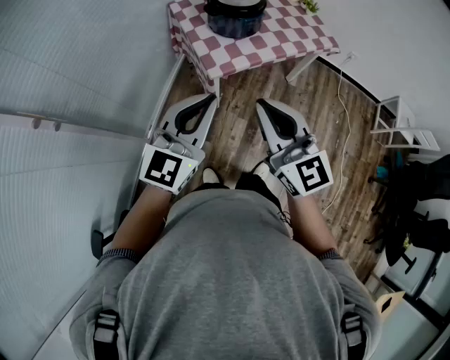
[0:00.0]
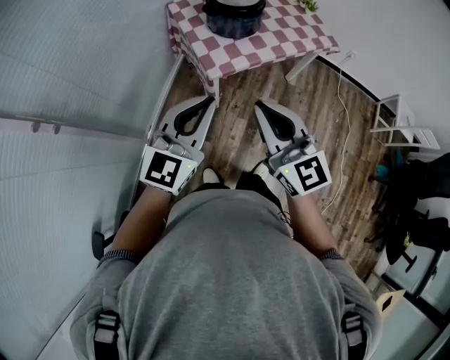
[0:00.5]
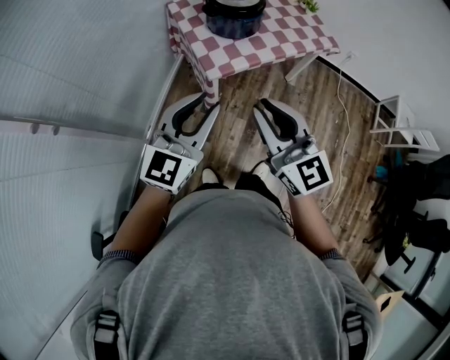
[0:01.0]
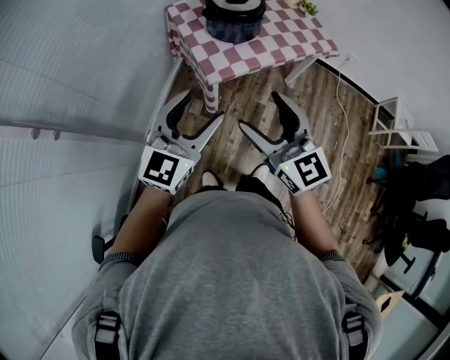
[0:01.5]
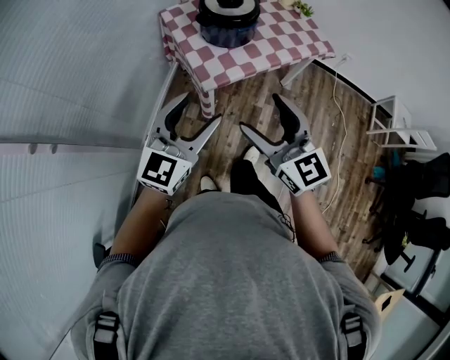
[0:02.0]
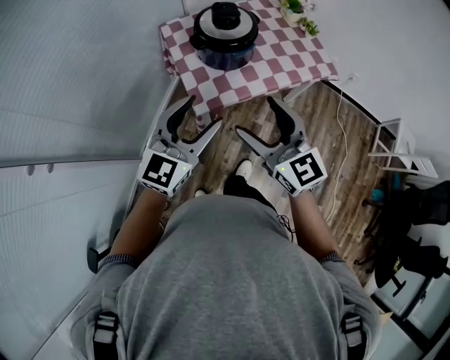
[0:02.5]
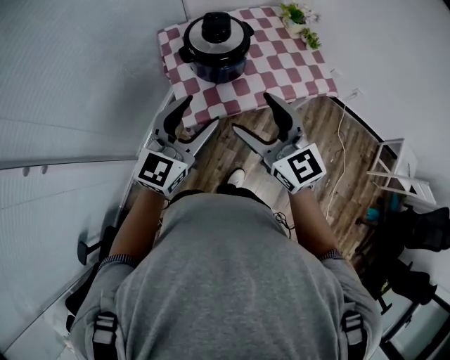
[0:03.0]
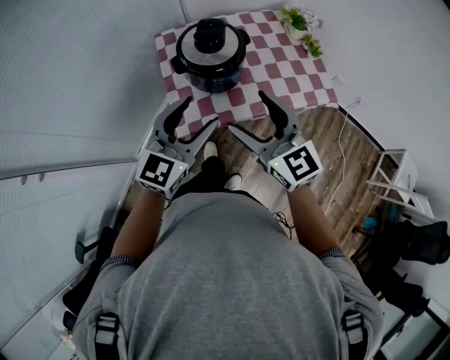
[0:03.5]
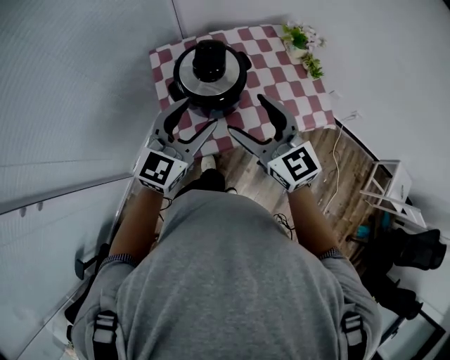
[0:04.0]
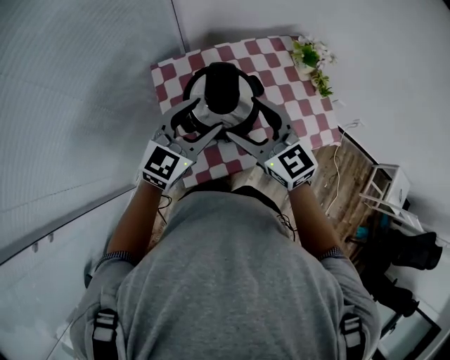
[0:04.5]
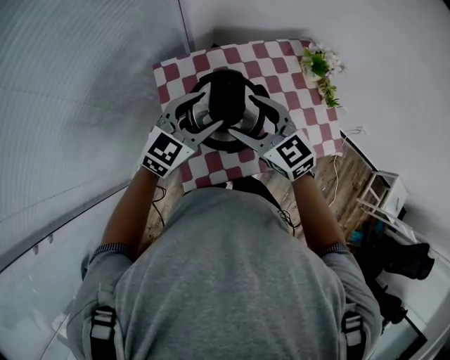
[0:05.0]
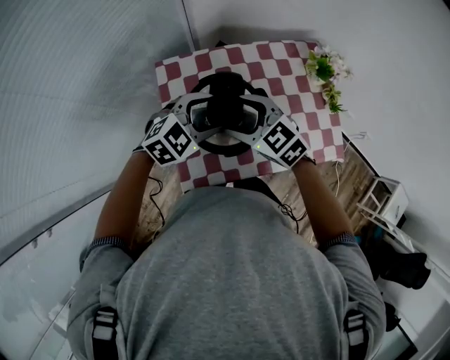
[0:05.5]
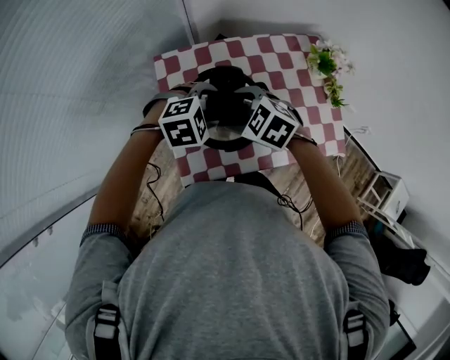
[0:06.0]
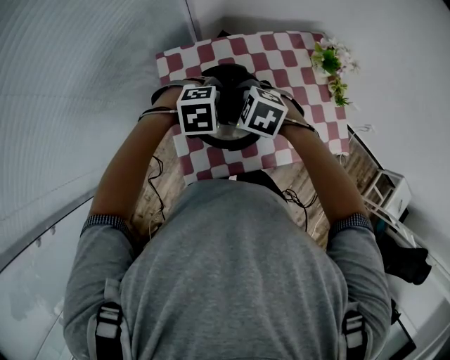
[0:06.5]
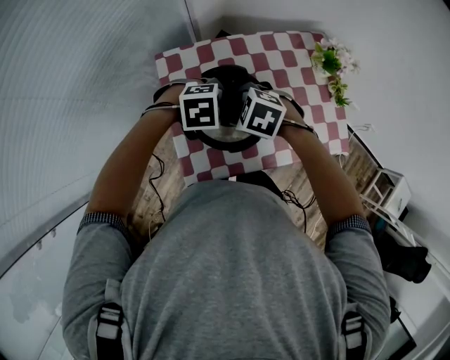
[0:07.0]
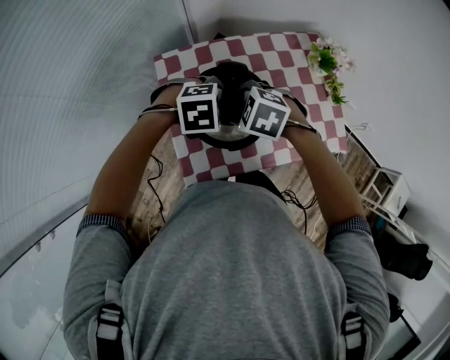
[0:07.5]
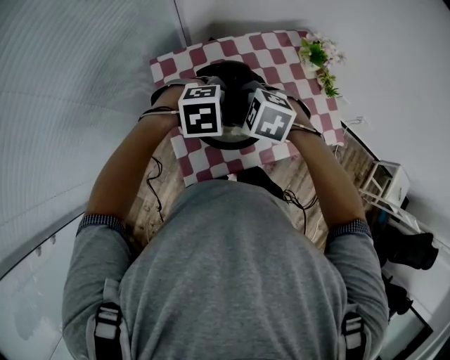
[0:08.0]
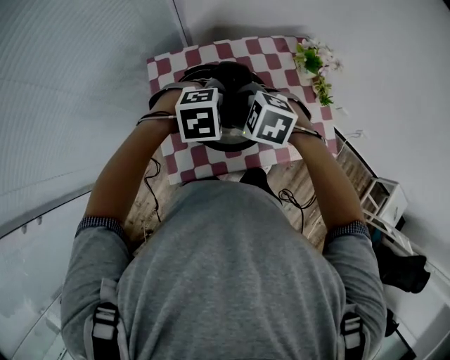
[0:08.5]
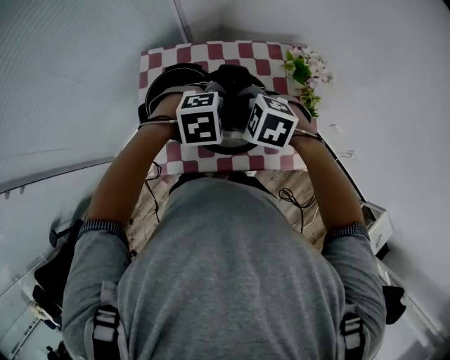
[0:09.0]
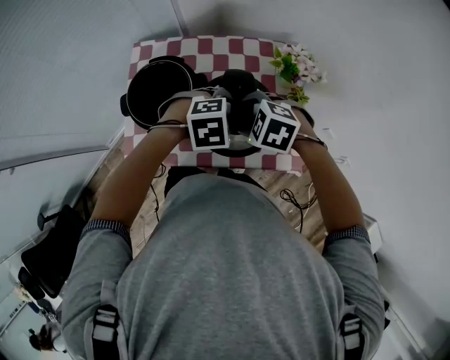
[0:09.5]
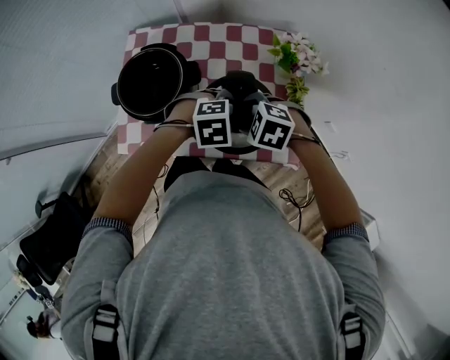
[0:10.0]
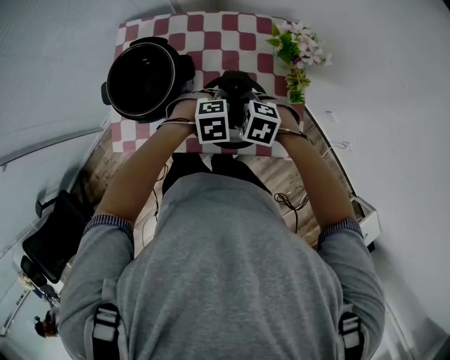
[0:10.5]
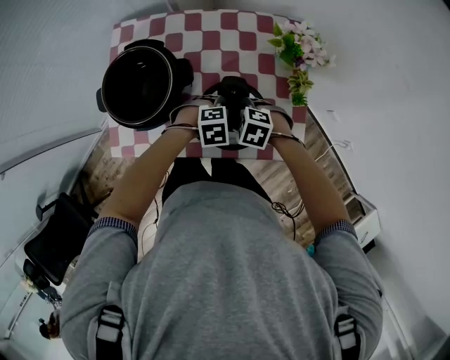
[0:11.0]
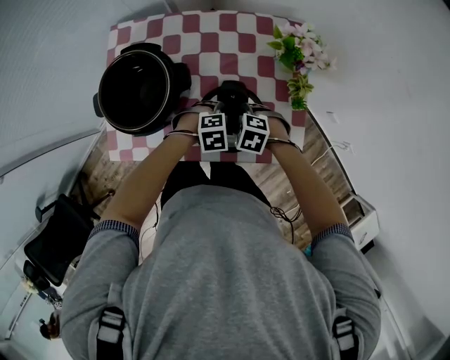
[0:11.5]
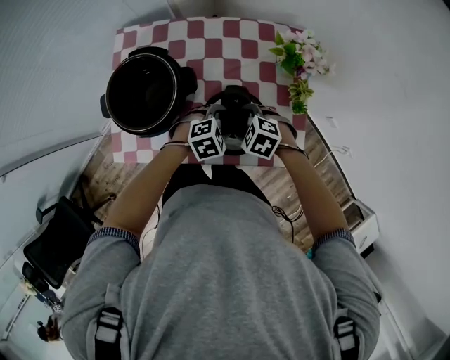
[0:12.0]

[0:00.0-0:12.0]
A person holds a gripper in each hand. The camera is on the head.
0.0 to 2.0 s: The grippers both shift forward by about 5 cm. The right gripper opens up, while the left gripper opens up.
2.0 to 4.0 s: The grippers both shift forward and to the right by approximately 35 cm.
4.0 to 6.0 s: The right gripper changes place by some 25 cm, and tilts its fingers approximately 40 degrees downward; the left gripper ends up approximately 25 cm from where it was, and angles its fingers downward, by some 50 degrees.
6.0 to 8.0 s: The grippers make only small movements.
8.0 to 10.0 s: The right gripper ends up approximately 30 cm from where it was, and changes its angle by some 20 degrees. Meanwhile the left gripper ends up about 30 cm from where it was, and turns by approximately 20 degrees.
10.0 to 12.0 s: Both grippers travel together downward, roughly 15 cm.

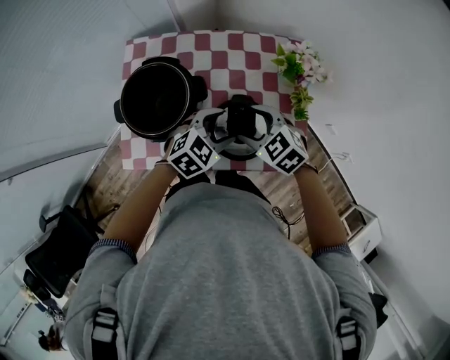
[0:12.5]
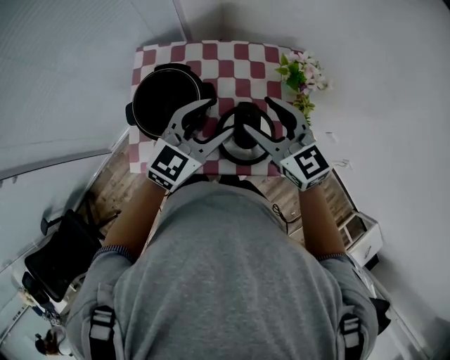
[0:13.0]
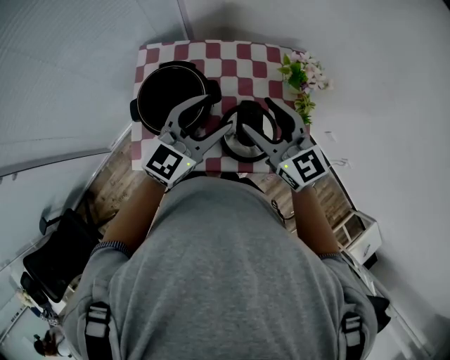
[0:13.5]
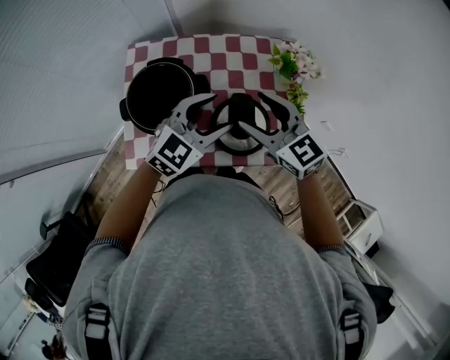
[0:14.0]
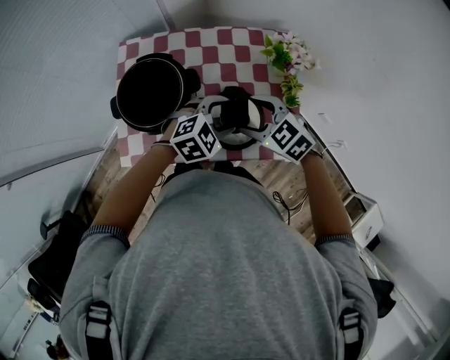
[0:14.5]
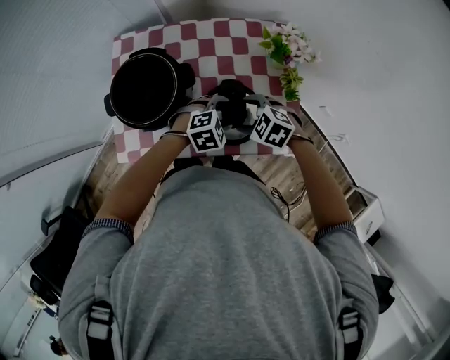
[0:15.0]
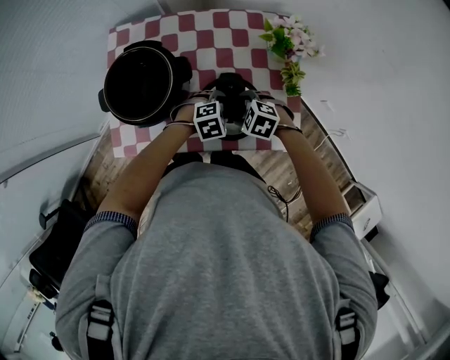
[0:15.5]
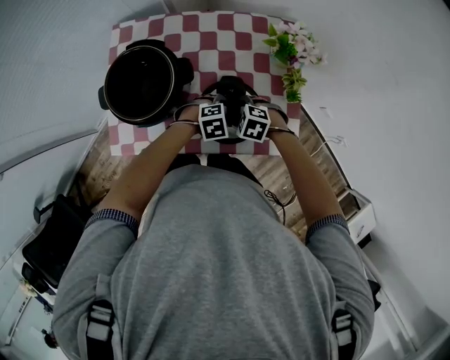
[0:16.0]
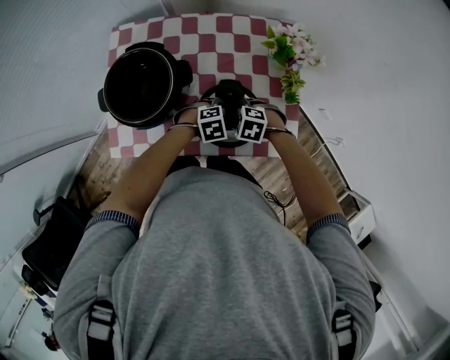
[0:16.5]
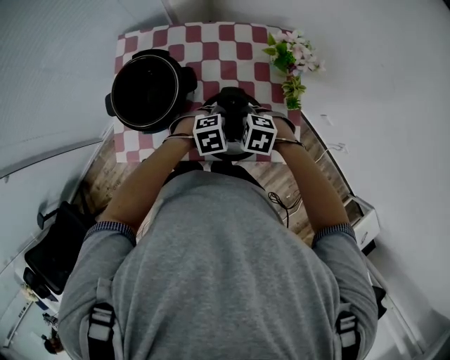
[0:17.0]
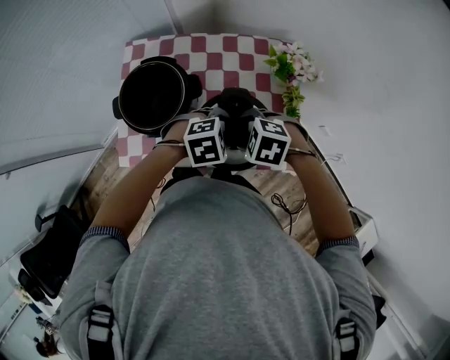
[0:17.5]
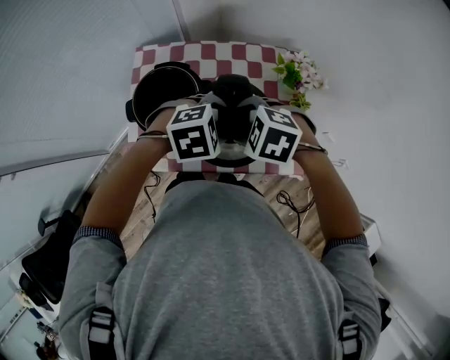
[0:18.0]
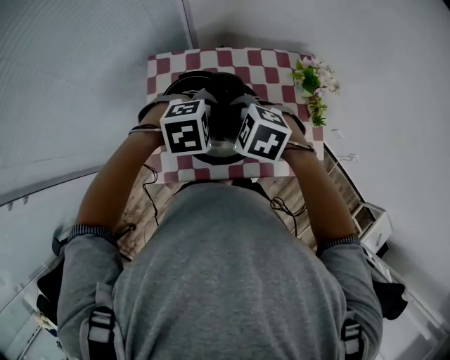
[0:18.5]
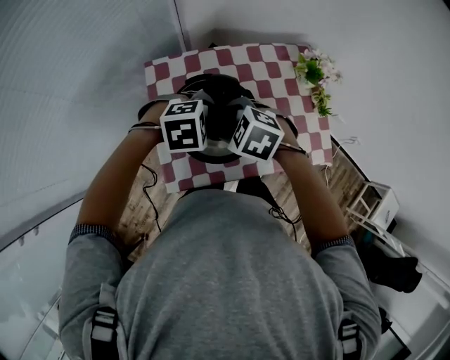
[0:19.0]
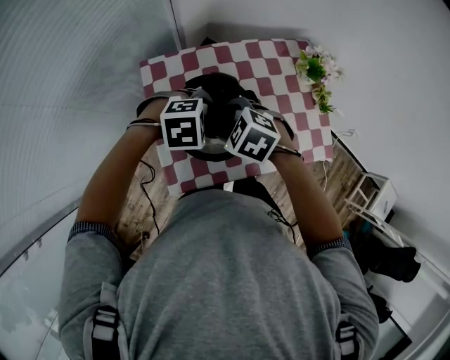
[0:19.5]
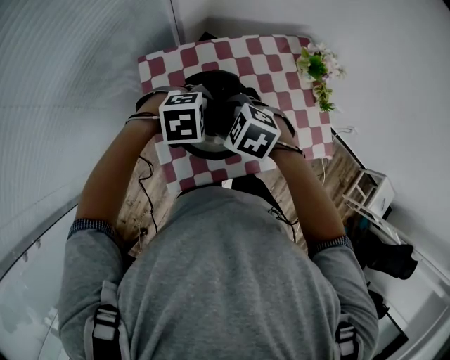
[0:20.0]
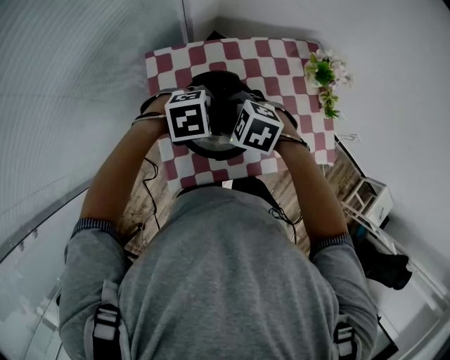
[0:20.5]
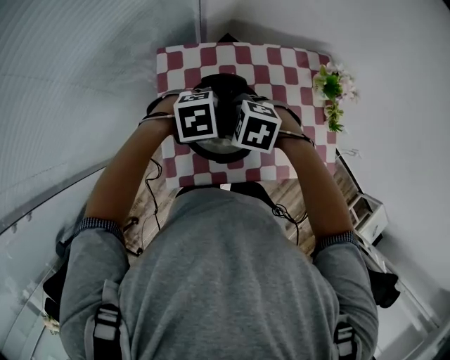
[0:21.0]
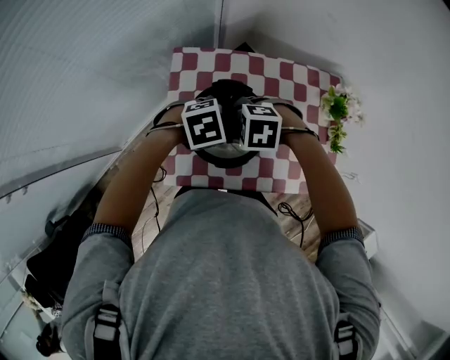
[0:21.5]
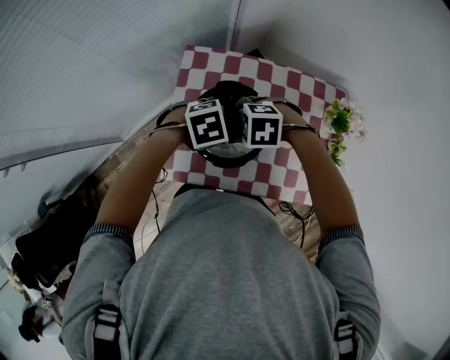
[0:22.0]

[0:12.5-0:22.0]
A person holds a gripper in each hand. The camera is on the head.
12.5 to 14.5 s: The right gripper reaches about 15 cm upward, then returns. Meanwhile the left gripper goes upward and returns, some 15 cm each way.
14.5 to 16.5 s: Both grippers move downward, approximately 20 cm. The left gripper turns by some 20 degrees; the right gripper turns by about 30 degrees.
16.5 to 18.0 s: The grippers both shift upward by some 25 cm.
18.0 to 20.0 s: The right gripper shifts by approximately 20 cm, and swivels some 20 degrees. Meanwhile the left gripper ends up roughly 20 cm from where it was, and swivels approximately 20 degrees.
20.0 to 22.0 s: The left gripper rotates some 40 degrees; the right gripper rotates around the line of its fingers by about 40 degrees, counterclockwise from behind.

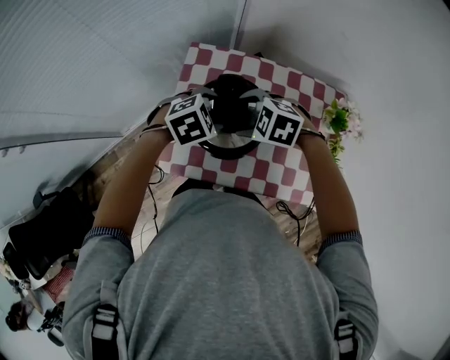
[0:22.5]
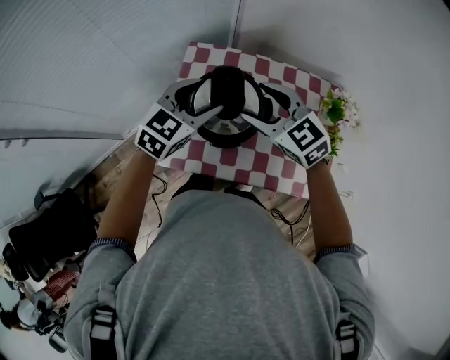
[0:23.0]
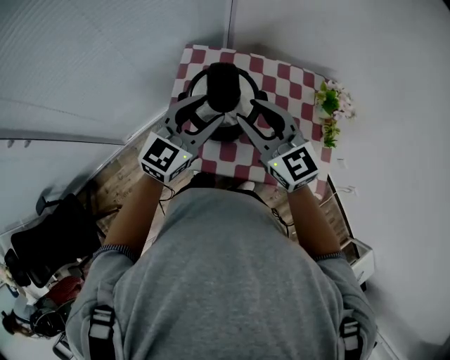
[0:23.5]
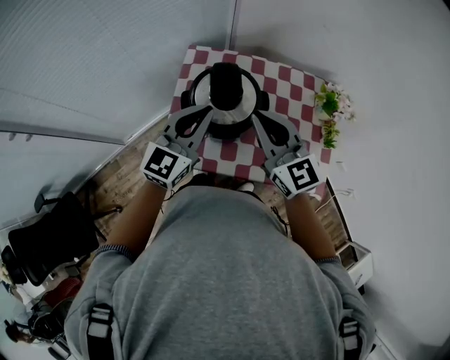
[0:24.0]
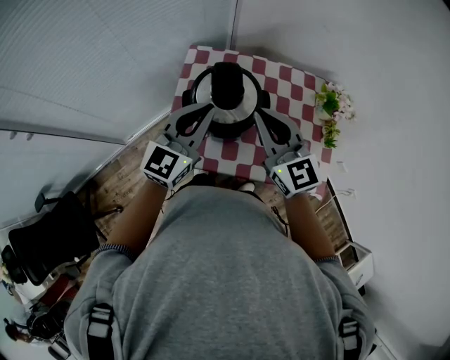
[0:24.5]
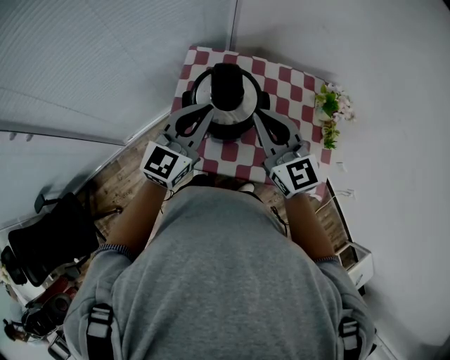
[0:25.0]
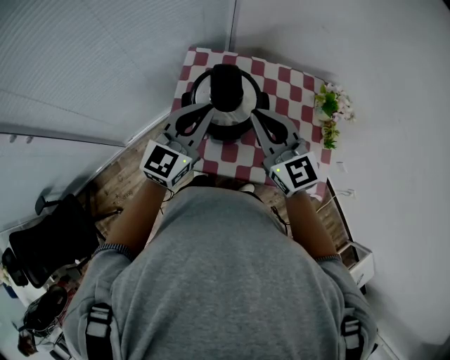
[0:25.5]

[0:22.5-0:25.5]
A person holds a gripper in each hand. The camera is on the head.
22.5 to 24.0 s: The grippers both shift upward by roughly 15 cm. The right gripper points its fingers some 60 degrees further upward, and closes its fingers; the left gripper tilts its fingers approximately 60 degrees upward, and closes.
24.0 to 25.5 s: Both grippers stay about where they are.

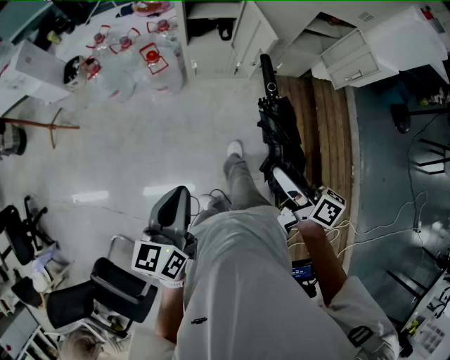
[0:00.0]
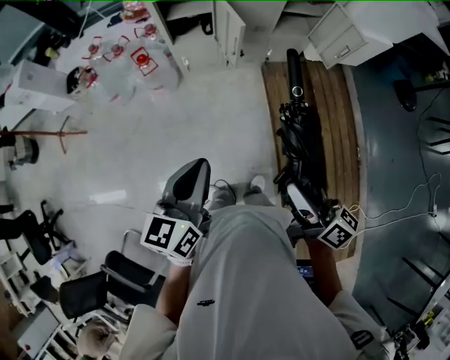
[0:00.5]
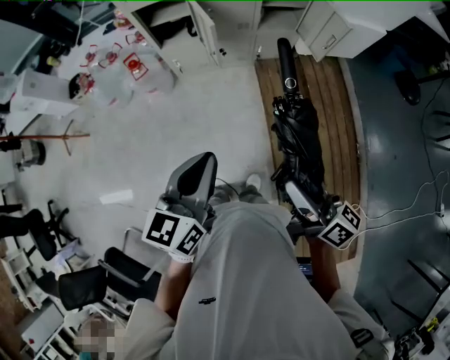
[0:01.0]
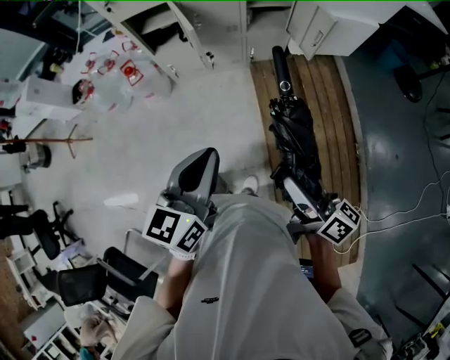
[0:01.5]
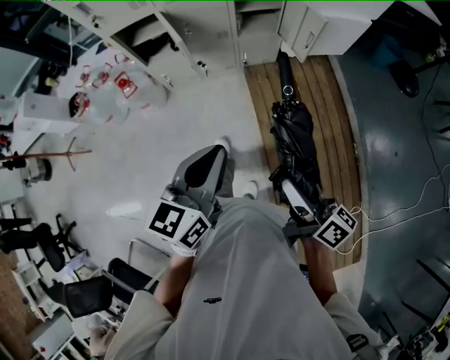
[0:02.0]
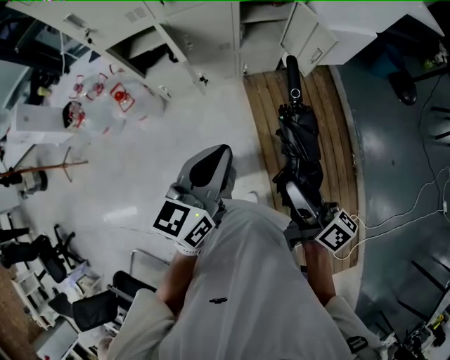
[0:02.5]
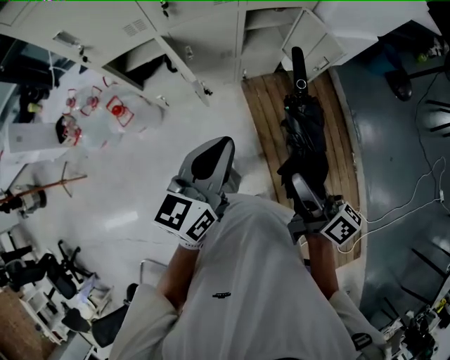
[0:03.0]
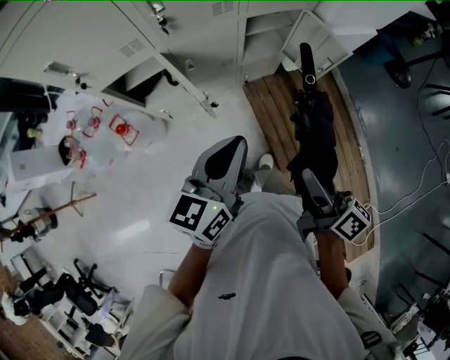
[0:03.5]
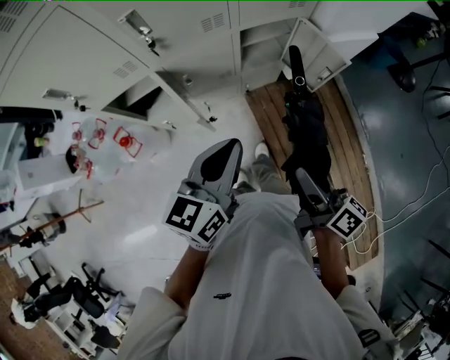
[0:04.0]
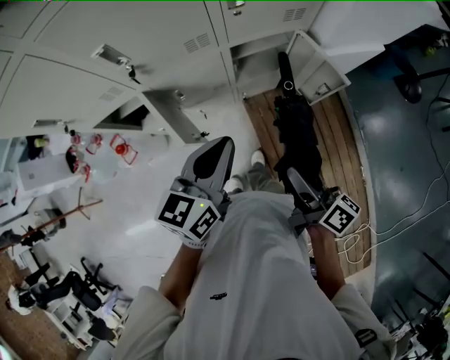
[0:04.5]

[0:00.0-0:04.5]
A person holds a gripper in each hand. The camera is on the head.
0.0 to 2.0 s: Both grippers move to the right, approximately 35 cm. The left gripper changes its angle by about 20 degrees.
2.0 to 4.5 s: Both grippers travel together forward, about 40 cm.
